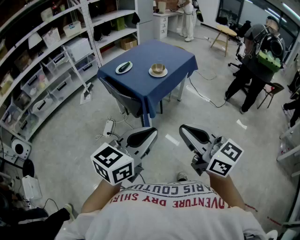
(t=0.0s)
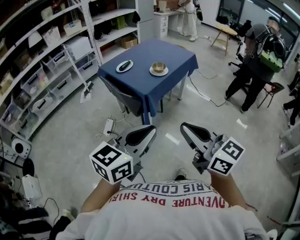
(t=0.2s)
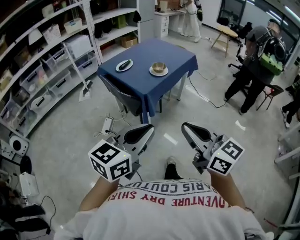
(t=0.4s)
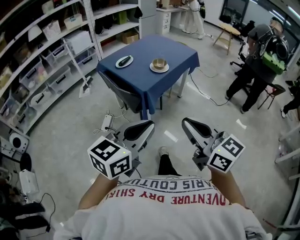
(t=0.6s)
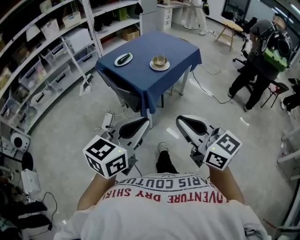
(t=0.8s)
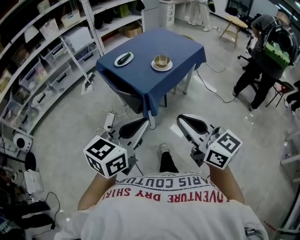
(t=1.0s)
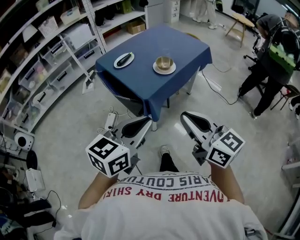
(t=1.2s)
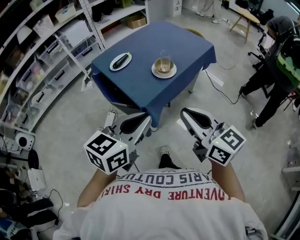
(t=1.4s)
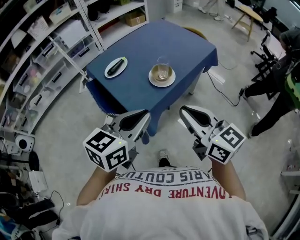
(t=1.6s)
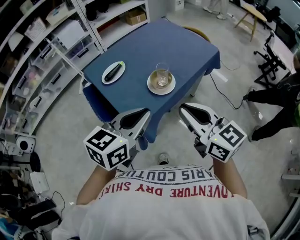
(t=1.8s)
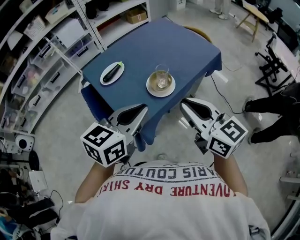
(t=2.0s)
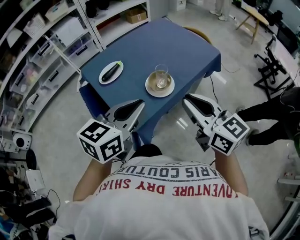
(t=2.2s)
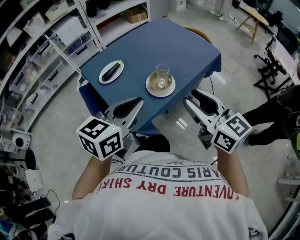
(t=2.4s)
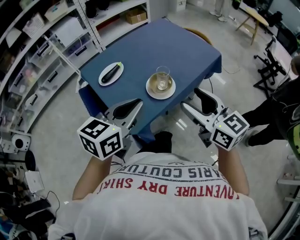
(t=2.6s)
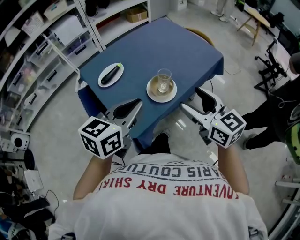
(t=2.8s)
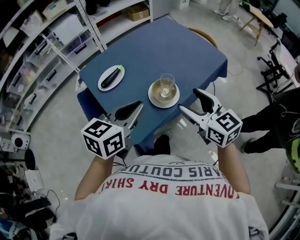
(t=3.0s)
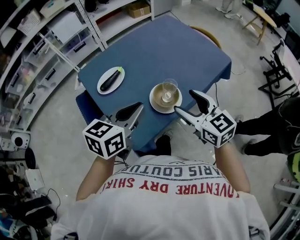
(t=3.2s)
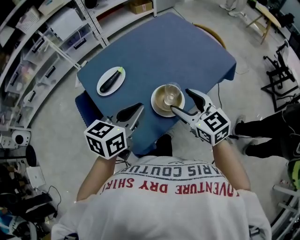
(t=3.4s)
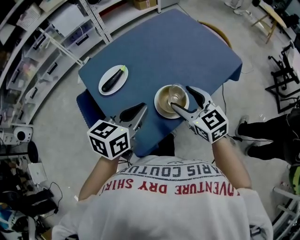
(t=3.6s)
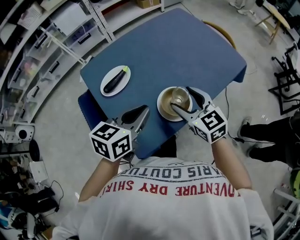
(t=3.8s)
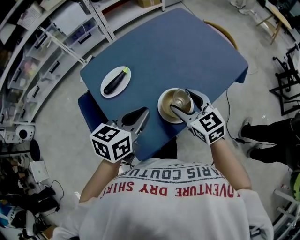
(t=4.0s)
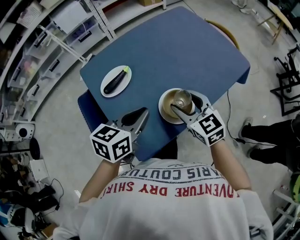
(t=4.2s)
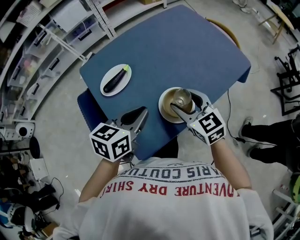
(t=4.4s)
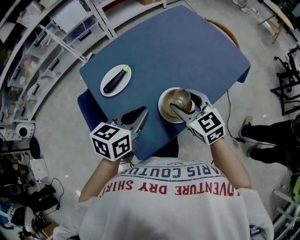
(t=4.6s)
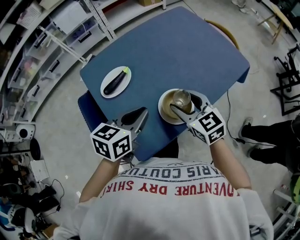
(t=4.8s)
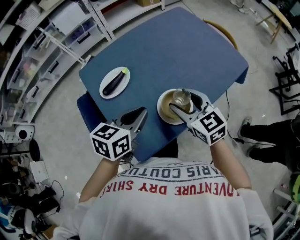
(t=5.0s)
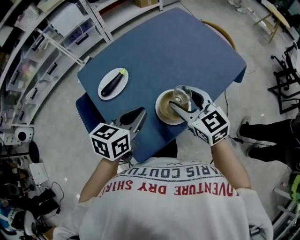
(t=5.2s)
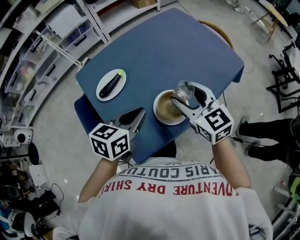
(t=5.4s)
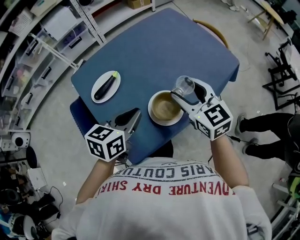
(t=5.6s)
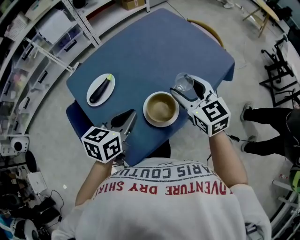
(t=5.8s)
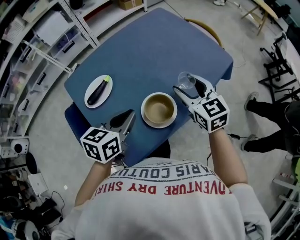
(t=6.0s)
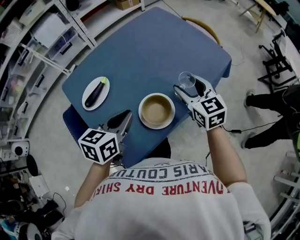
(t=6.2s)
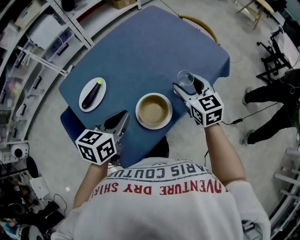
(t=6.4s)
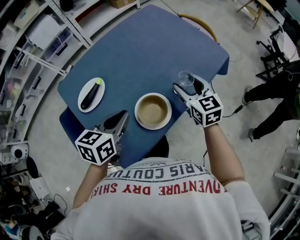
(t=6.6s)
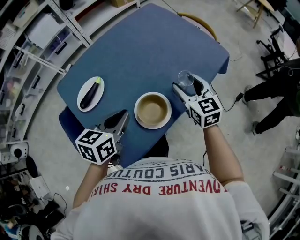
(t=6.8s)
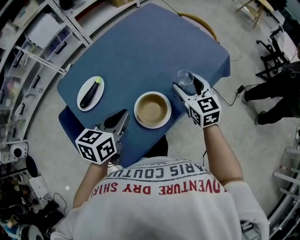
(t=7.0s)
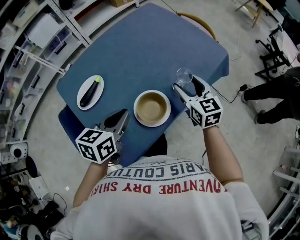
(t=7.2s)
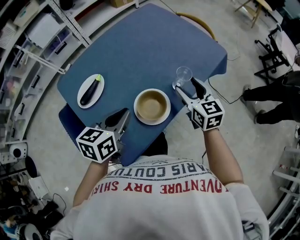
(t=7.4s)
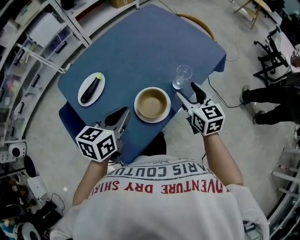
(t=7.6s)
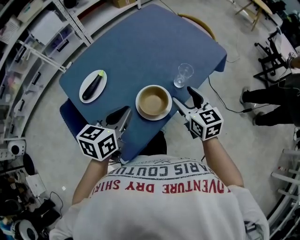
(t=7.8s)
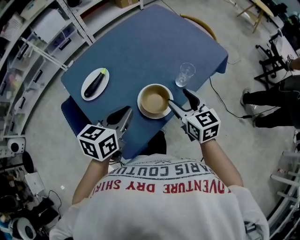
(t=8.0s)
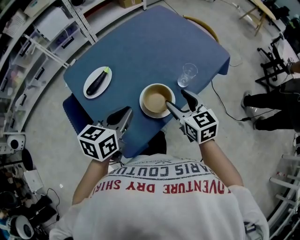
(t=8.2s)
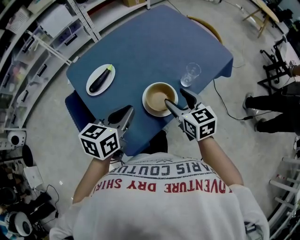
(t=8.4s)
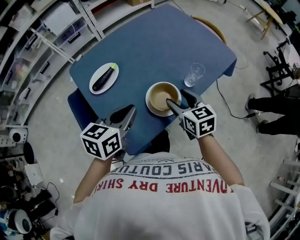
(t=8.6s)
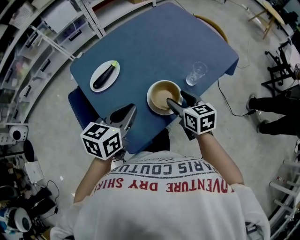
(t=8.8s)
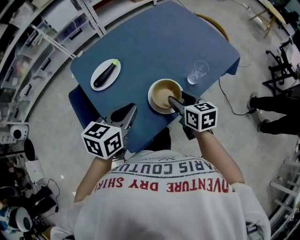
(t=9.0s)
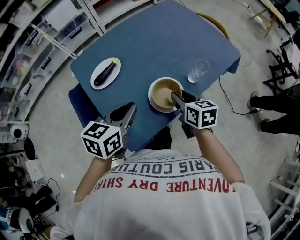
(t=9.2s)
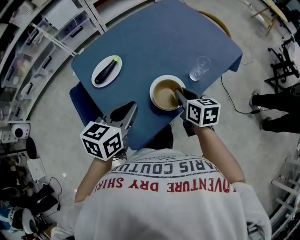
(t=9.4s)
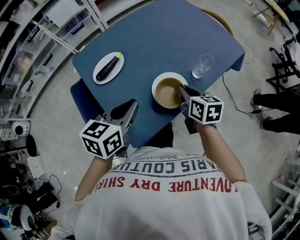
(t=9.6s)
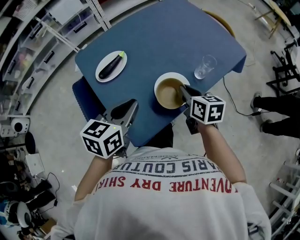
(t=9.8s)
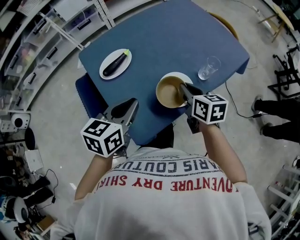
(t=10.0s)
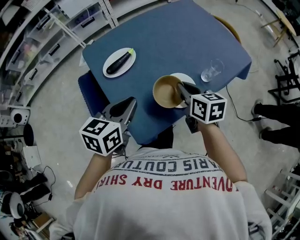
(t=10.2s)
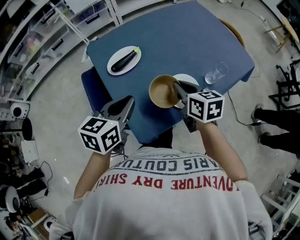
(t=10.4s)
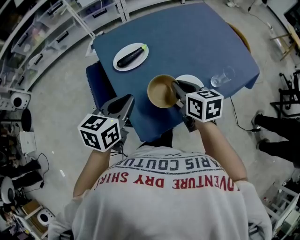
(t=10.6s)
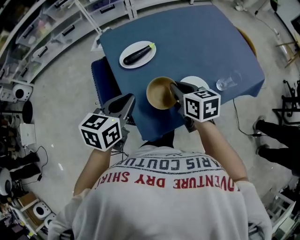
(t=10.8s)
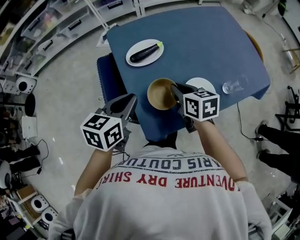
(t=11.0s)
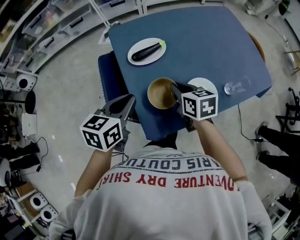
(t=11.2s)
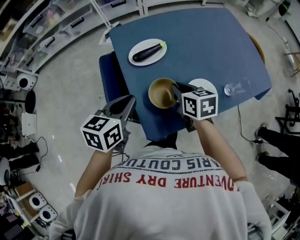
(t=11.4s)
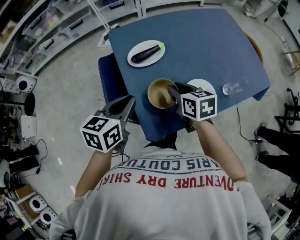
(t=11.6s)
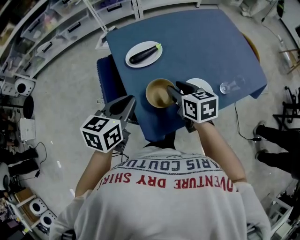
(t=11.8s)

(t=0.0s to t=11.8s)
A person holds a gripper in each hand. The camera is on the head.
t=0.0s - t=1.4s: The grippers both shift forward by roughly 25 cm.
t=1.4s - t=3.0s: The grippers both shift forward by roughly 25 cm. The right gripper opens.
t=3.0s - t=4.4s: The right gripper goes about 15 cm forward, downward and to the left; the left gripper heads downward and forward, covering approximately 10 cm.
t=4.4s - t=6.0s: The right gripper goes about 10 cm to the right and forward.
t=6.0s - t=7.4s: The right gripper moves to the right and downward, about 10 cm.
t=7.4s - t=8.8s: The right gripper is displaced to the left and backward by roughly 10 cm.
t=8.8s - t=10.4s: Both grippers move to the left, some 5 cm. The right gripper closes its fingers.
t=10.4s - t=11.8s: Both grippers travel together to the left, about 10 cm.

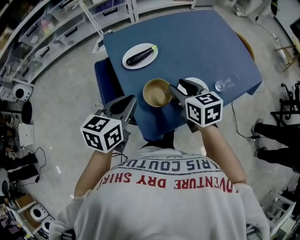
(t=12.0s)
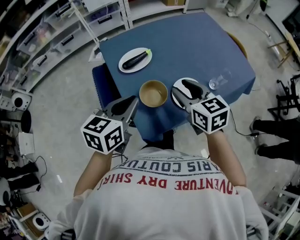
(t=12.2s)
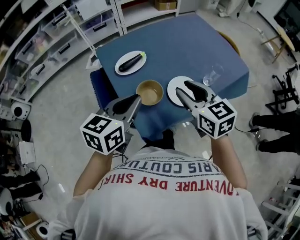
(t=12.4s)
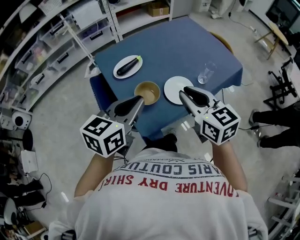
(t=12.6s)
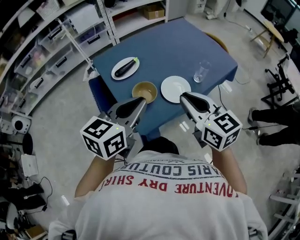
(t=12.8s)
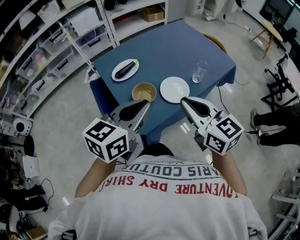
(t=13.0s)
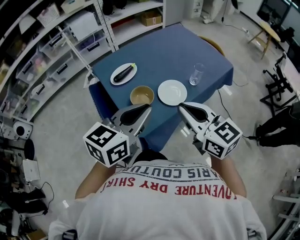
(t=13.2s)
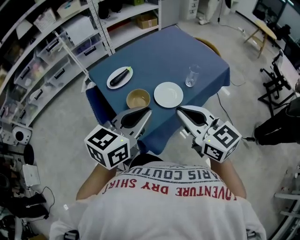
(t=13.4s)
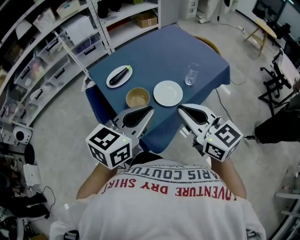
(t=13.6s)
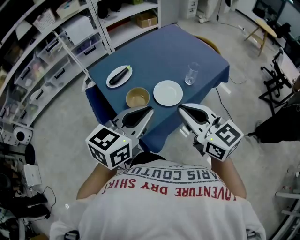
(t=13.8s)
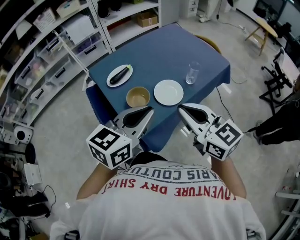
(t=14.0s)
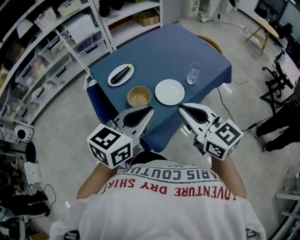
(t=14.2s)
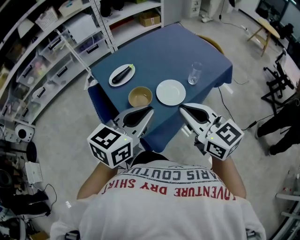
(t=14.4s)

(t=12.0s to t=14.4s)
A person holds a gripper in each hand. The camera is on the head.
t=12.0s - t=13.2s: The right gripper heads backward, upward and to the right, covering about 25 cm, changes its angle by approximately 20 degrees, and closes. Meanwhile the left gripper is displaced upward, to the right and backward by some 20 cm, and changes its angle by some 30 degrees.
t=13.2s - t=14.4s: The grippers stay close to where they were, moving slightly.

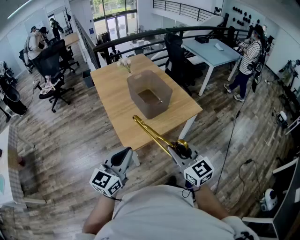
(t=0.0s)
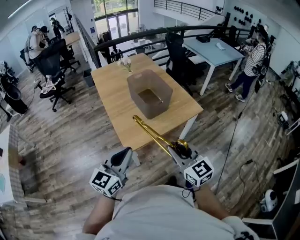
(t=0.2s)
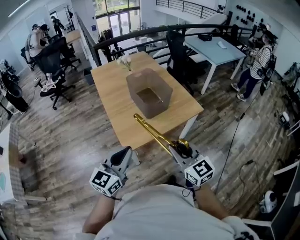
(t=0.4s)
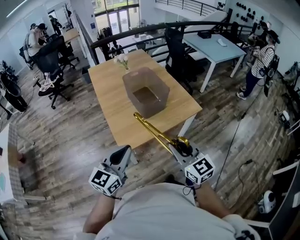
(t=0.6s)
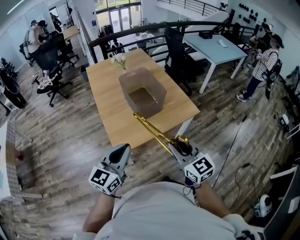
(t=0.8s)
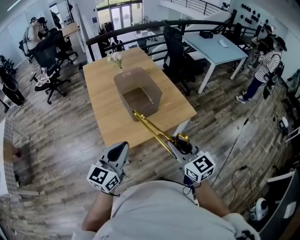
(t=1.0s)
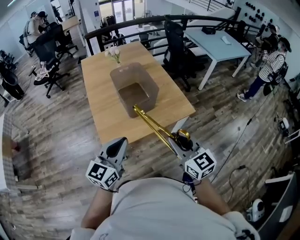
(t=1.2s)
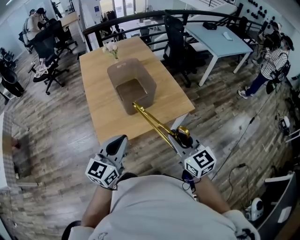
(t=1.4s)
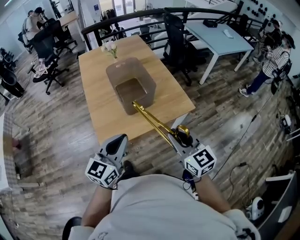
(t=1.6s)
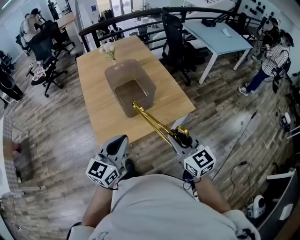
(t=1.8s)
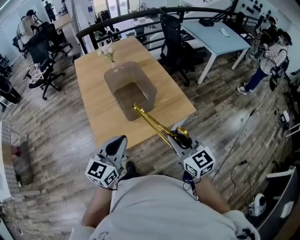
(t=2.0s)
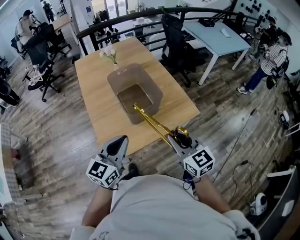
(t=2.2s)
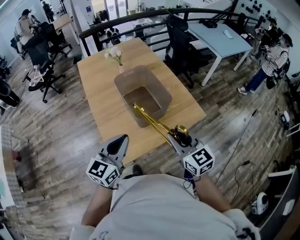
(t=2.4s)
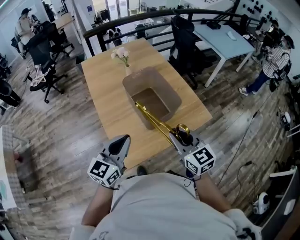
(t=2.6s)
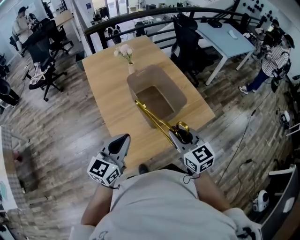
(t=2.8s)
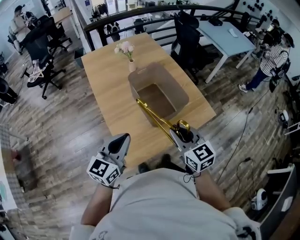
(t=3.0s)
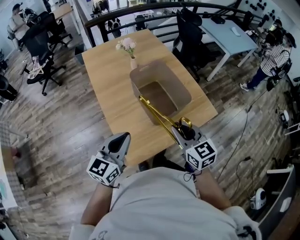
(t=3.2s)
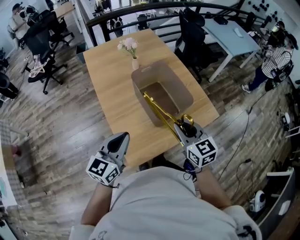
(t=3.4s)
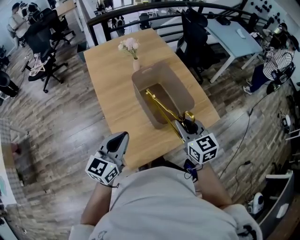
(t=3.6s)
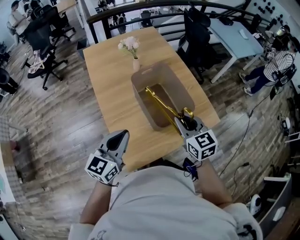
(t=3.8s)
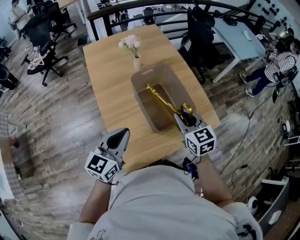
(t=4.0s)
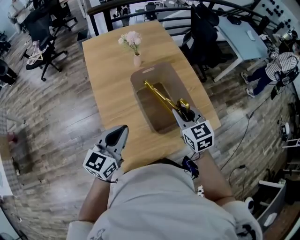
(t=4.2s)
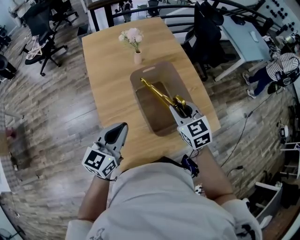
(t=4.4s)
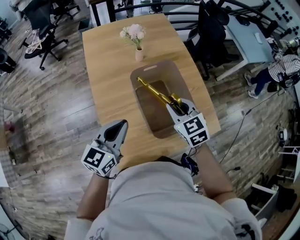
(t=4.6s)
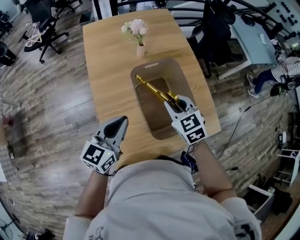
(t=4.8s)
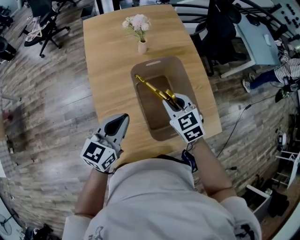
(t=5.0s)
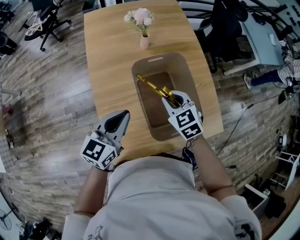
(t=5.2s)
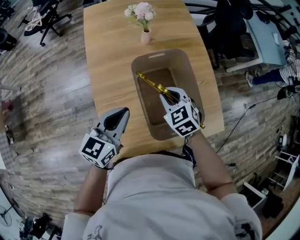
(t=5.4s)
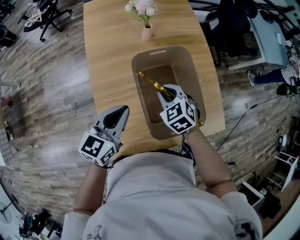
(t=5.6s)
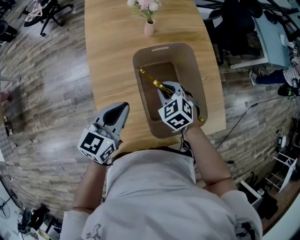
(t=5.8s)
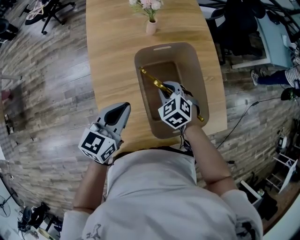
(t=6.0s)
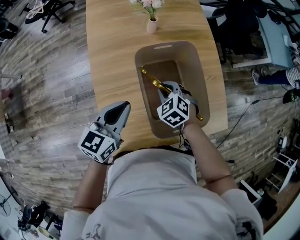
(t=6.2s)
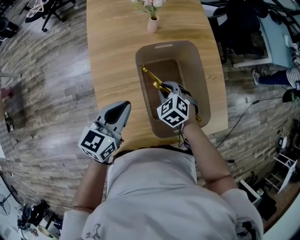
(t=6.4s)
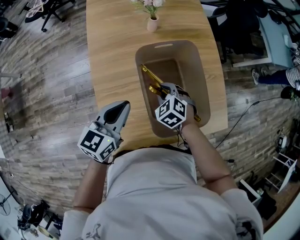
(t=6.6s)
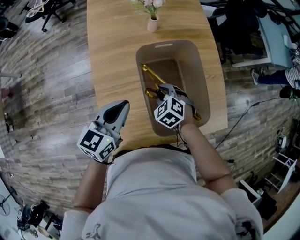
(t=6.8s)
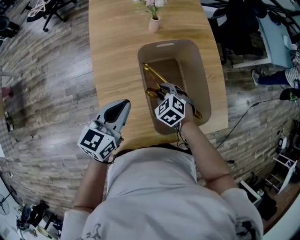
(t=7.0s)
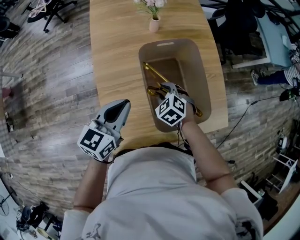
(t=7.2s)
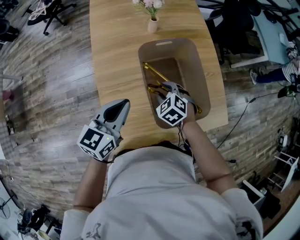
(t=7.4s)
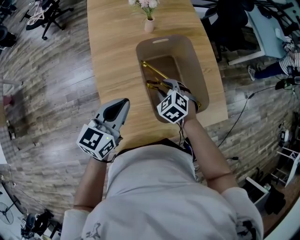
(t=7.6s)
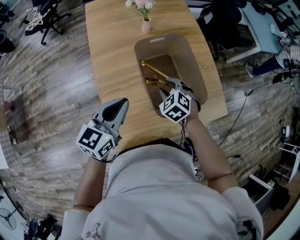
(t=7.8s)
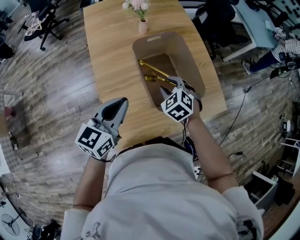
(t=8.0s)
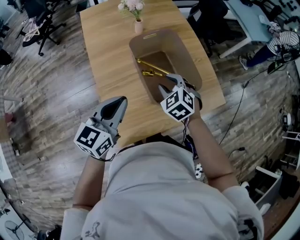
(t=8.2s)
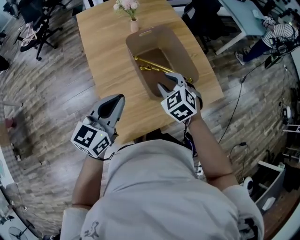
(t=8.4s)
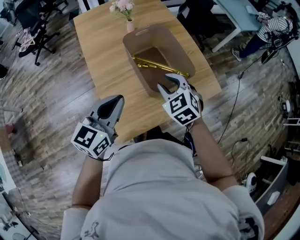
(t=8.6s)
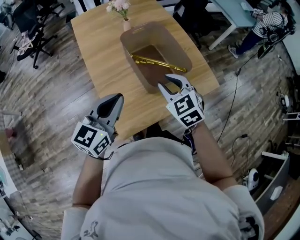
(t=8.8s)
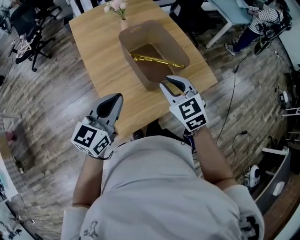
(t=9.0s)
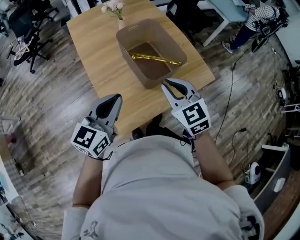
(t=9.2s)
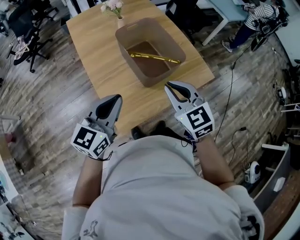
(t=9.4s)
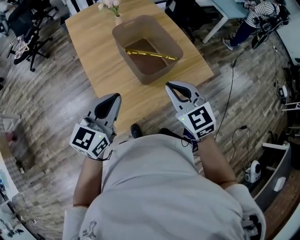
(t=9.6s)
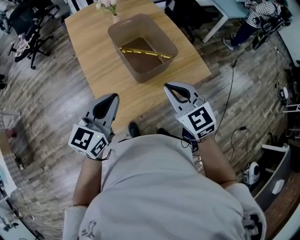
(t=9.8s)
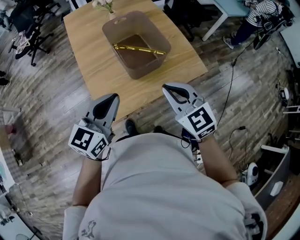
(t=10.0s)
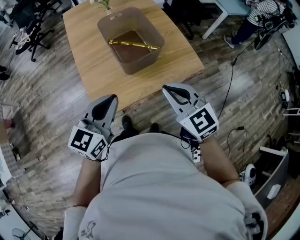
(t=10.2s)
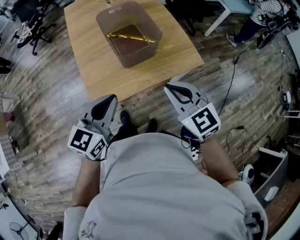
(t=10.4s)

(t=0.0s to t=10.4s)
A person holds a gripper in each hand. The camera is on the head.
t=0.0s - t=1.4s: The grippers both shift to the right and forward by approximately 20 cm.
t=1.4s - t=3.0s: The grippers both shift to the left and forward by some 25 cm.
t=3.0s - t=4.4s: The right gripper is displaced forward by some 20 cm, while the left gripper heads forward, covering approximately 15 cm.
t=4.4s - t=6.0s: The left gripper shifts roughly 10 cm downward and forward. The right gripper moves downward, approximately 15 cm, and changes its angle by approximately 30 degrees.
t=6.0s - t=7.4s: The right gripper opens up.
t=7.4s - t=9.0s: The right gripper shifts some 25 cm upward and backward, and swivels approximately 40 degrees; the left gripper moves backward and upward, approximately 15 cm.
t=9.0s - t=10.4s: The grippers both shift to the right and backward by some 20 cm.
